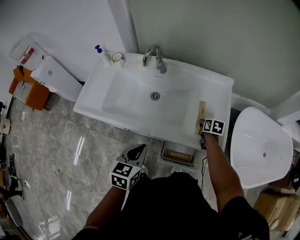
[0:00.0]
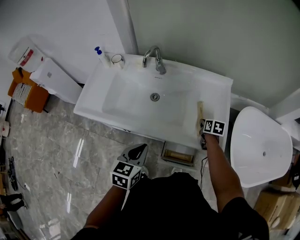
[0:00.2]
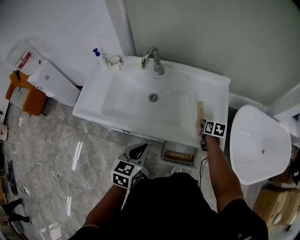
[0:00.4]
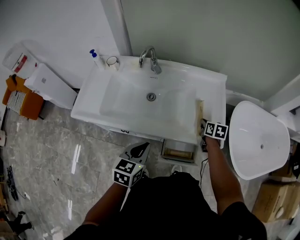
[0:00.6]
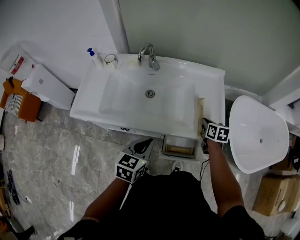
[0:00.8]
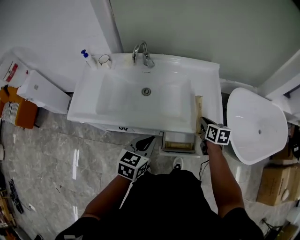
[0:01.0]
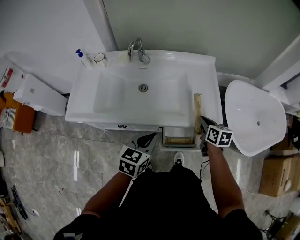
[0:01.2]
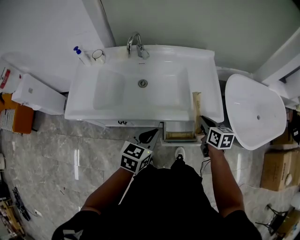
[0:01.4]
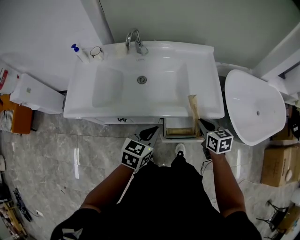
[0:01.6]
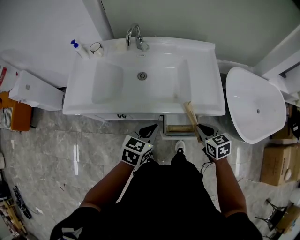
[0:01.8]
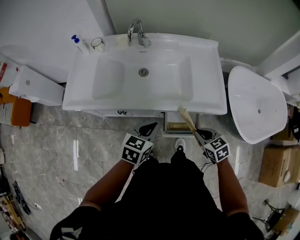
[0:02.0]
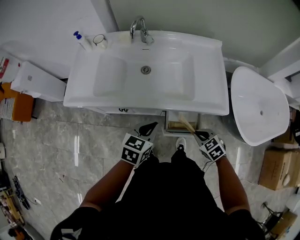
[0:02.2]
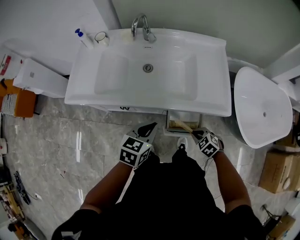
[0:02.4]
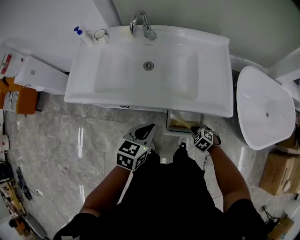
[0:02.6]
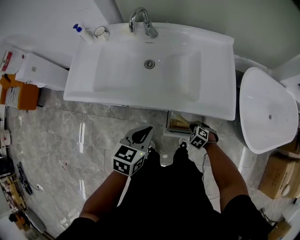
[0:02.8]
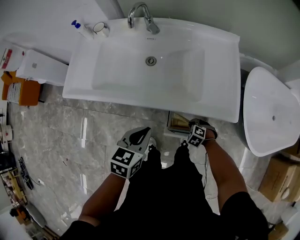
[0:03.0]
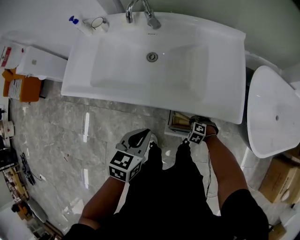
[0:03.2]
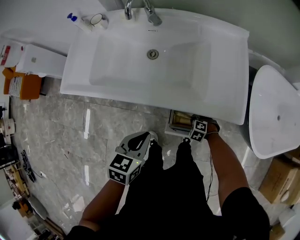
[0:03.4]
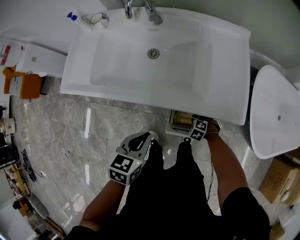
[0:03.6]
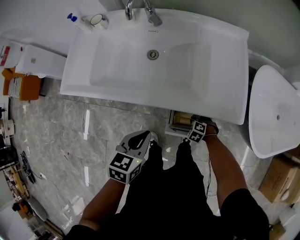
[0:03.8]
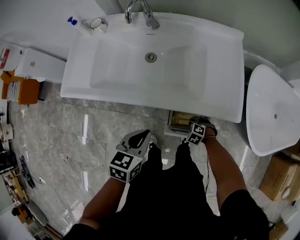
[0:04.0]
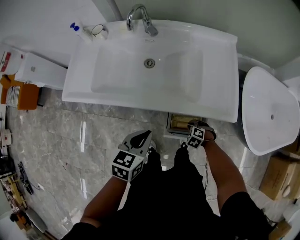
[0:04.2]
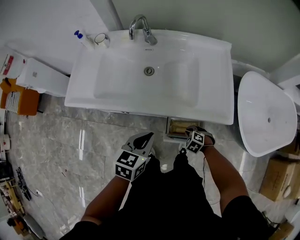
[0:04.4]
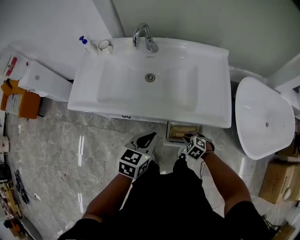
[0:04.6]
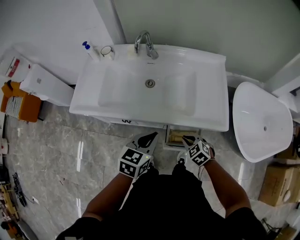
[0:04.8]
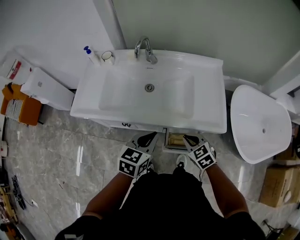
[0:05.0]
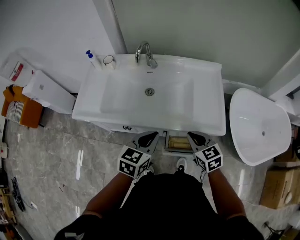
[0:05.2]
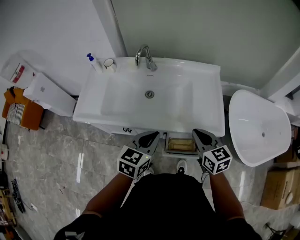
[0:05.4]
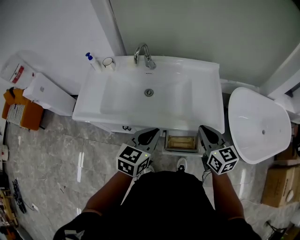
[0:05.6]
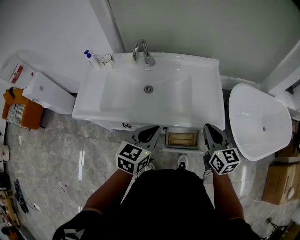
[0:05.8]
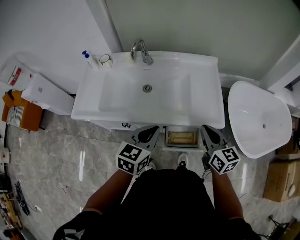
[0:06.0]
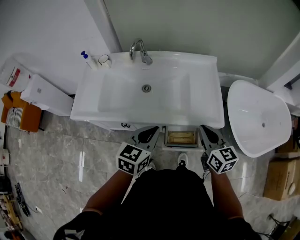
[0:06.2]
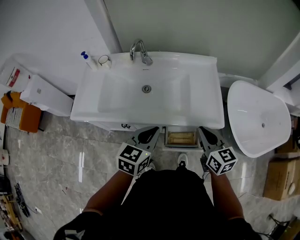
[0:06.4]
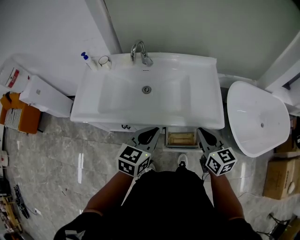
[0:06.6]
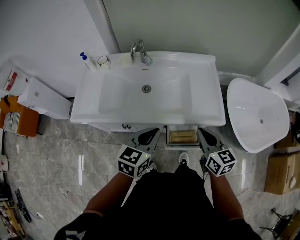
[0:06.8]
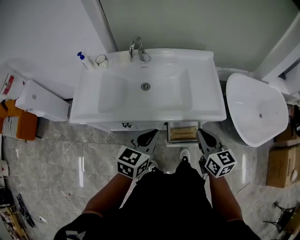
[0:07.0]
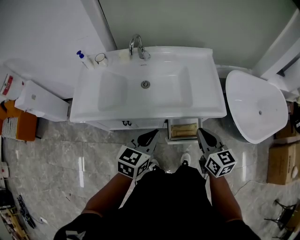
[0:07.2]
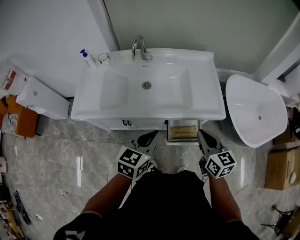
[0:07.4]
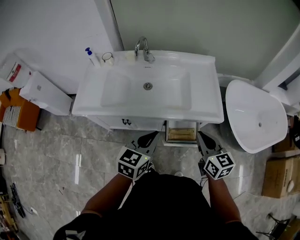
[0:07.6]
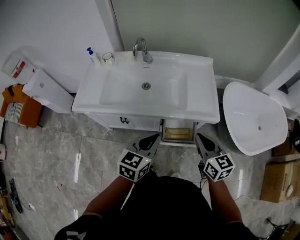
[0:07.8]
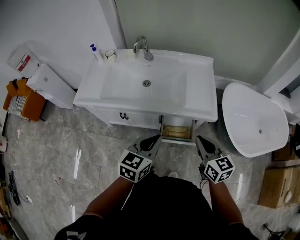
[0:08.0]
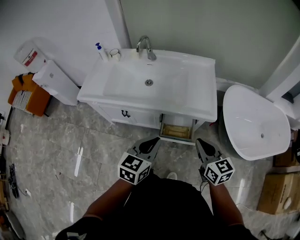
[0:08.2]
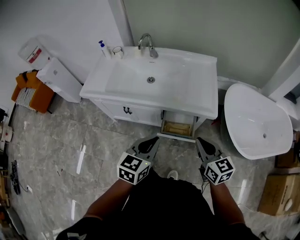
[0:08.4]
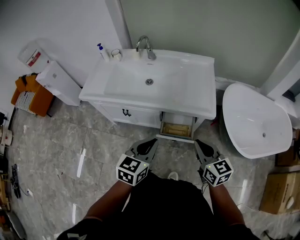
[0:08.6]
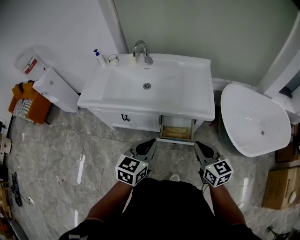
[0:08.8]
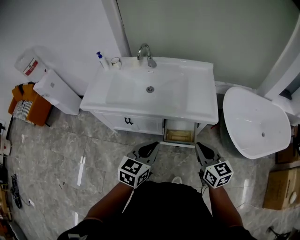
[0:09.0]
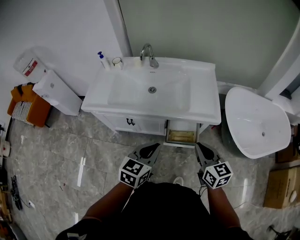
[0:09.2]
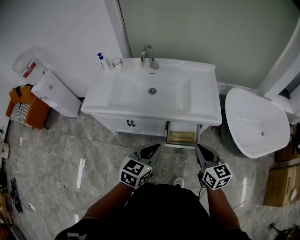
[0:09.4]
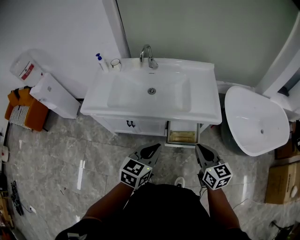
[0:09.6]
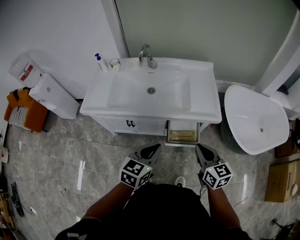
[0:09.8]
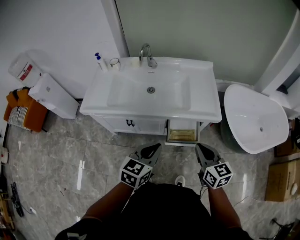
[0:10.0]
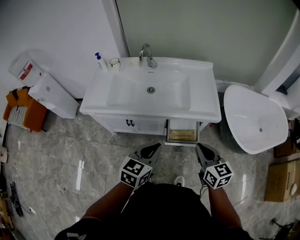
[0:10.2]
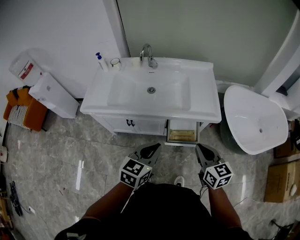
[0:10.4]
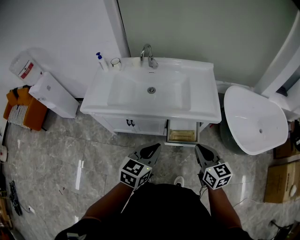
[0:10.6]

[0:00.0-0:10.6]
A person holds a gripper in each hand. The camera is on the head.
0:00.0 to 0:01.6: The right gripper heads backward and upward, covering roughly 25 cm, while the left gripper turns by roughly 20 degrees.
0:01.6 to 0:03.0: The right gripper heads downward, covering some 30 cm, and rotates around the line of its fingers by some 60 degrees, counterclockwise from behind.
0:03.0 to 0:04.6: The right gripper is displaced upward by some 10 cm.
0:04.6 to 0:06.0: The right gripper shifts some 30 cm upward, and angles its fingers upward, by about 50 degrees. Meanwhile the left gripper travels upward by approximately 10 cm.
0:06.0 to 0:07.6: Both grippers travel together backward, approximately 5 cm.
0:07.6 to 0:09.0: The right gripper heads backward, covering about 10 cm; the left gripper shifts about 10 cm backward and to the right.
0:09.0 to 0:10.6: There are only small adjustments of the grippers.

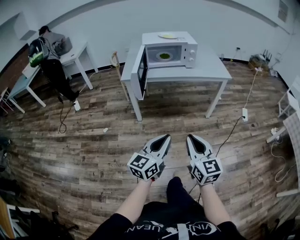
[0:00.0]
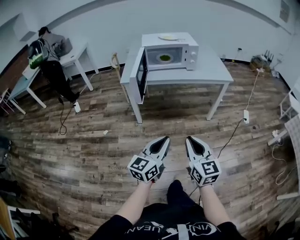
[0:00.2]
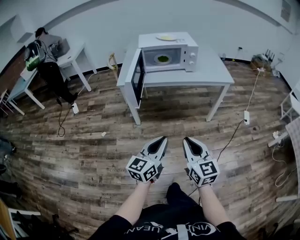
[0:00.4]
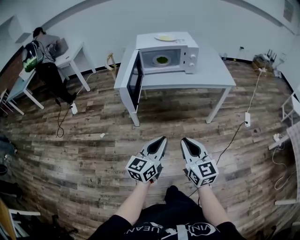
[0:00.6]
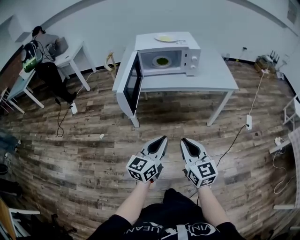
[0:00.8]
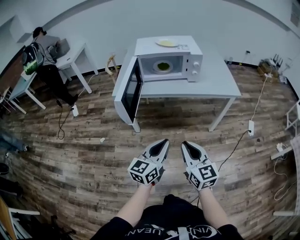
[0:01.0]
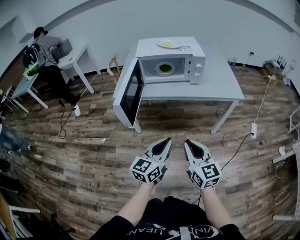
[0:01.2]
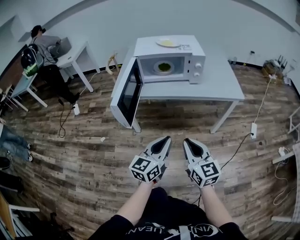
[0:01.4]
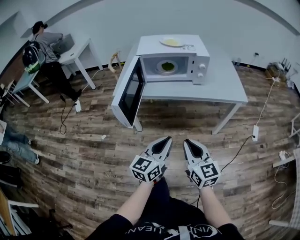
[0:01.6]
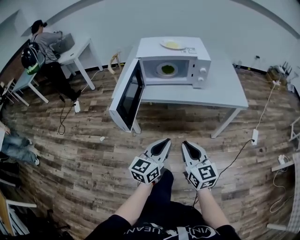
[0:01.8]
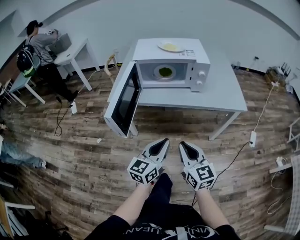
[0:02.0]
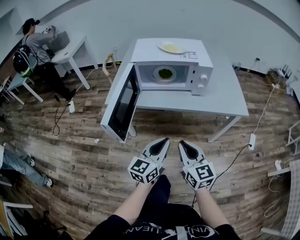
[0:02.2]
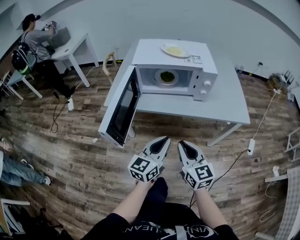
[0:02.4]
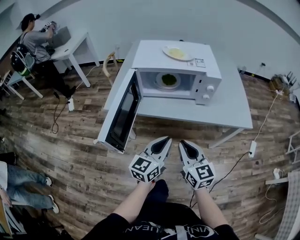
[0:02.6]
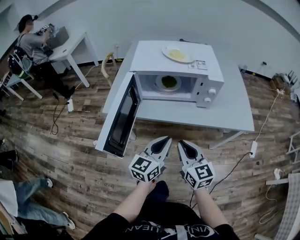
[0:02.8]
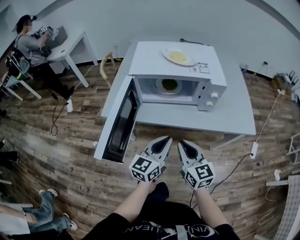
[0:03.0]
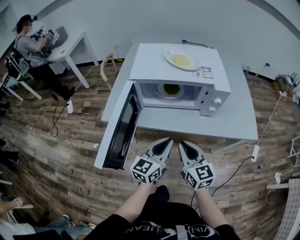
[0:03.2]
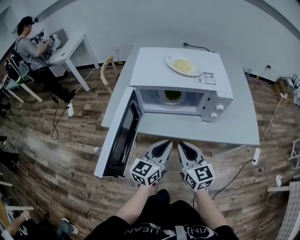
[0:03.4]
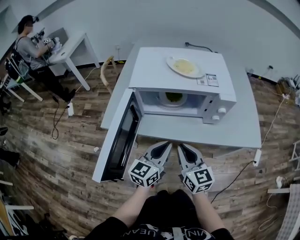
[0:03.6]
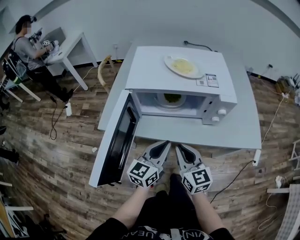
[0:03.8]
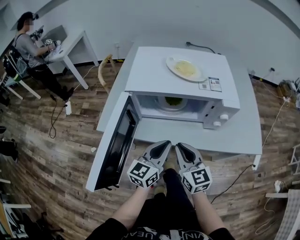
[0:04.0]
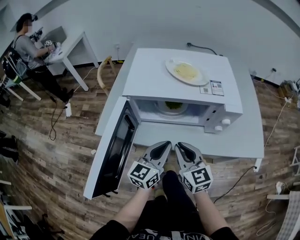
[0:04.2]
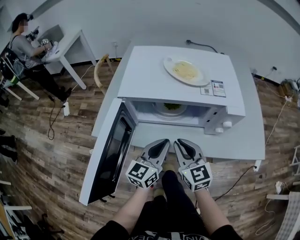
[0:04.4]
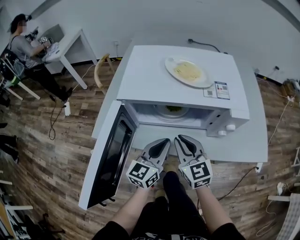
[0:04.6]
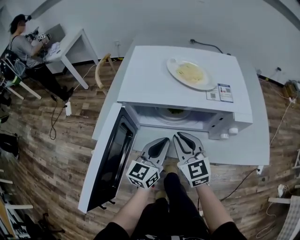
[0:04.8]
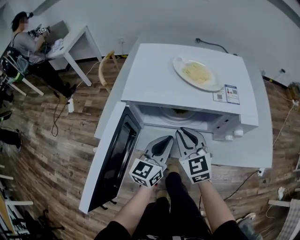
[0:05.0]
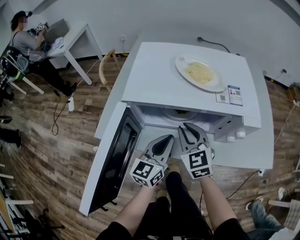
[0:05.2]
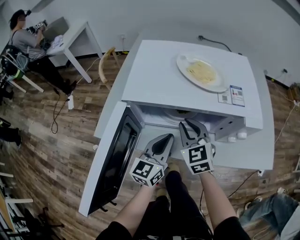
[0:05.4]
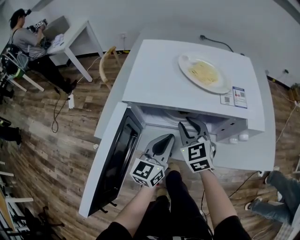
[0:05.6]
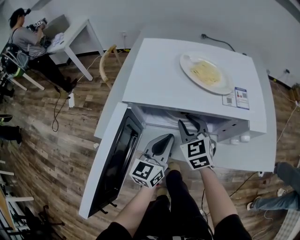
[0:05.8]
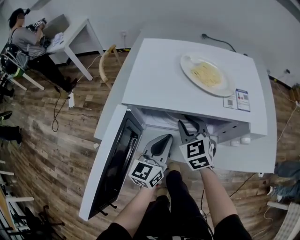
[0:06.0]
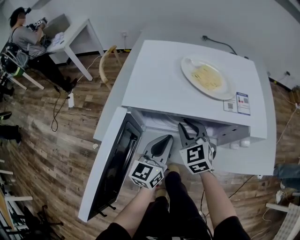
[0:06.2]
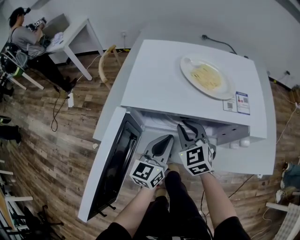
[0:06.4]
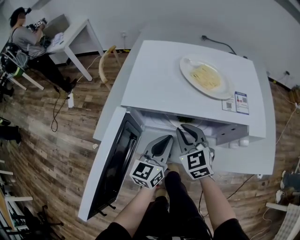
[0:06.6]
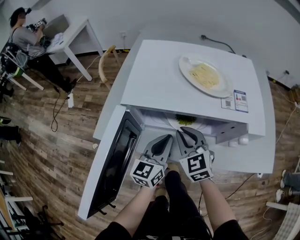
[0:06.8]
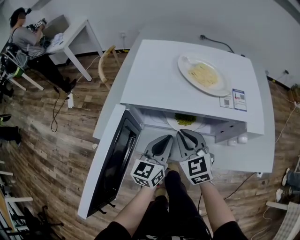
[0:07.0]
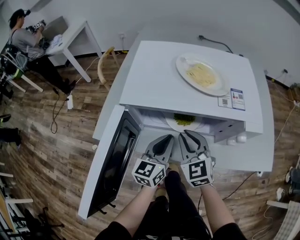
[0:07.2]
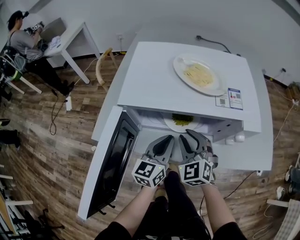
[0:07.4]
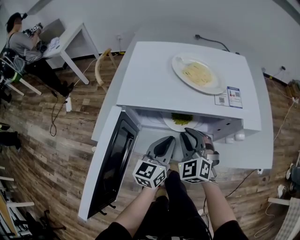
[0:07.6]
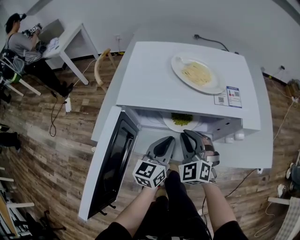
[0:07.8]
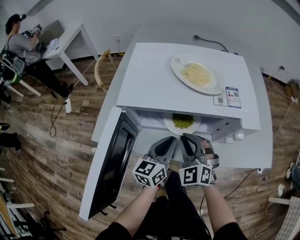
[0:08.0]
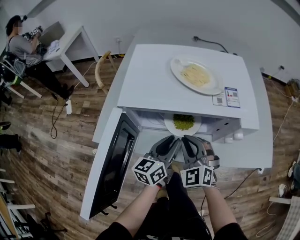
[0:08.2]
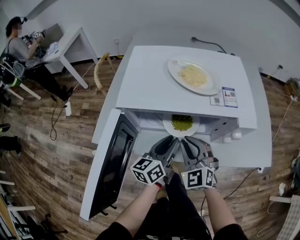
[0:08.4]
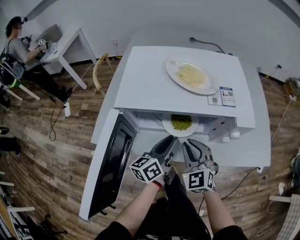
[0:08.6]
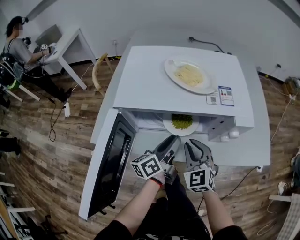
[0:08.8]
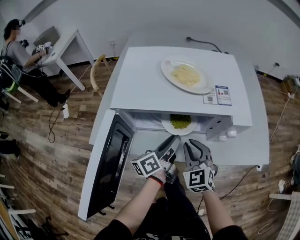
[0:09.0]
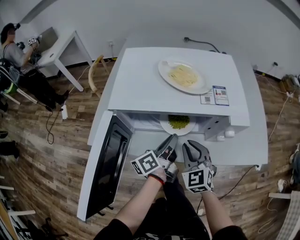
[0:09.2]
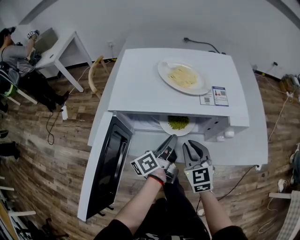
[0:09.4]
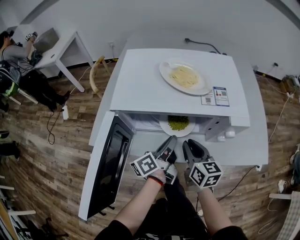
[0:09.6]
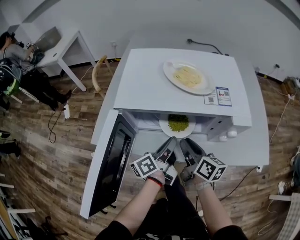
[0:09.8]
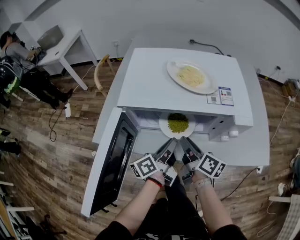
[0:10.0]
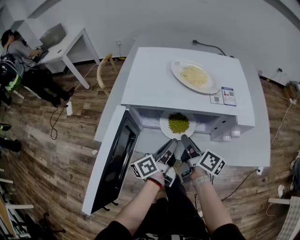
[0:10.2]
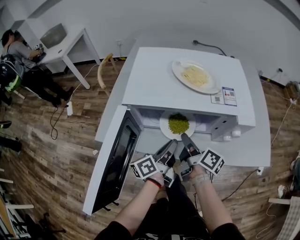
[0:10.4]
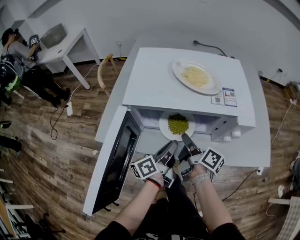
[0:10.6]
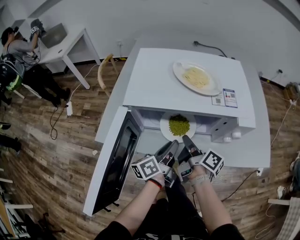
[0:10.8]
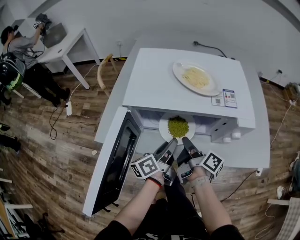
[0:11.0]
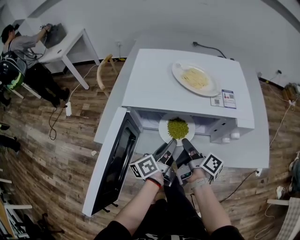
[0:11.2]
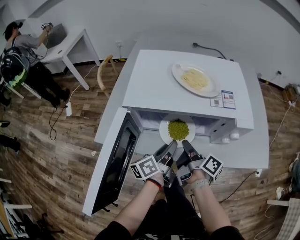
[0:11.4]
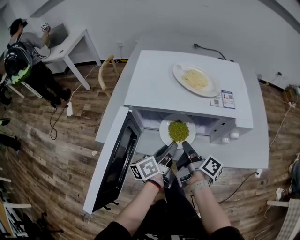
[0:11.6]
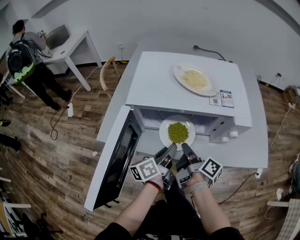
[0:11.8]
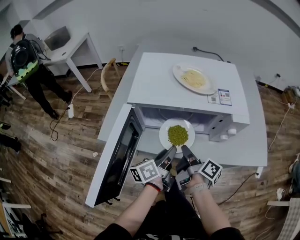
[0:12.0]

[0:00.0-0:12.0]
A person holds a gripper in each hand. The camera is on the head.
0:00.0 to 0:01.6: Both grippers move forward, about 25 cm.
0:01.6 to 0:03.0: The two grippers go some 20 cm forward.
0:03.0 to 0:04.4: Both grippers move forward, some 15 cm.
0:04.4 to 0:06.0: The left gripper moves forward, approximately 5 cm, while the right gripper goes some 15 cm forward, and swivels about 20 degrees.
0:06.0 to 0:07.6: The right gripper heads backward, covering roughly 5 cm, and turns by some 20 degrees.
0:07.6 to 0:09.0: The left gripper twists roughly 40 degrees counterclockwise, seen from behind, and opens, while the right gripper ends up roughly 5 cm from where it was.
0:09.0 to 0:10.4: The right gripper twists approximately 90 degrees clockwise, seen from behind; the left gripper closes its fingers.
0:10.4 to 0:12.0: The right gripper moves backward, about 5 cm.

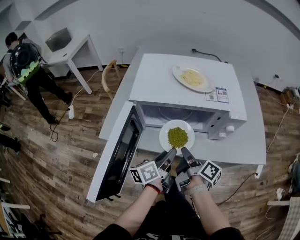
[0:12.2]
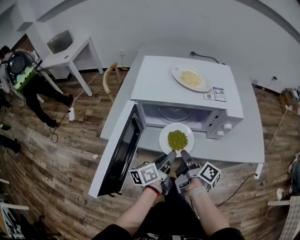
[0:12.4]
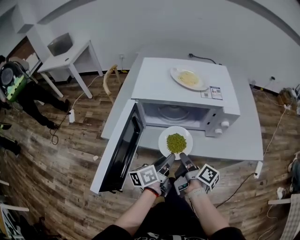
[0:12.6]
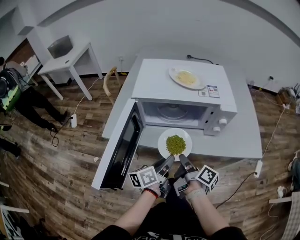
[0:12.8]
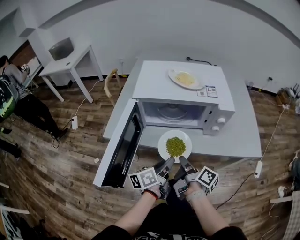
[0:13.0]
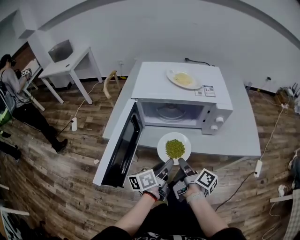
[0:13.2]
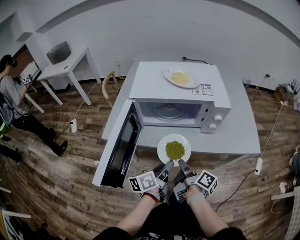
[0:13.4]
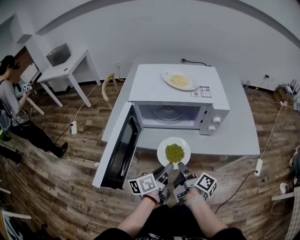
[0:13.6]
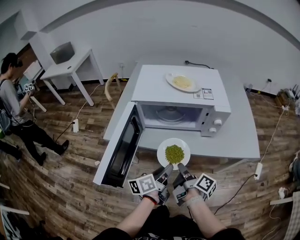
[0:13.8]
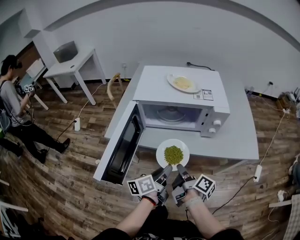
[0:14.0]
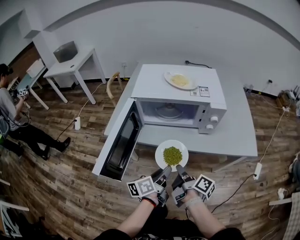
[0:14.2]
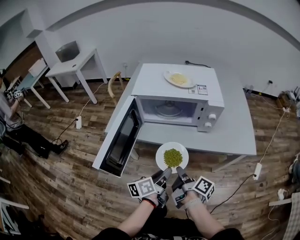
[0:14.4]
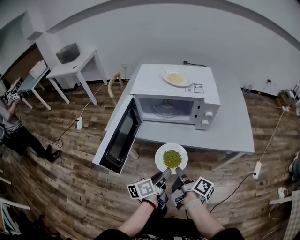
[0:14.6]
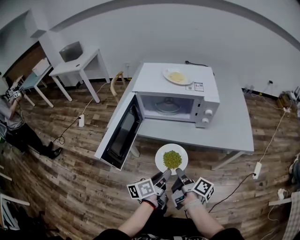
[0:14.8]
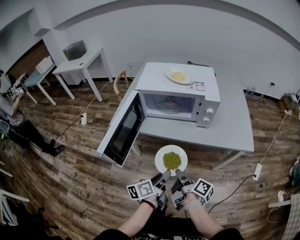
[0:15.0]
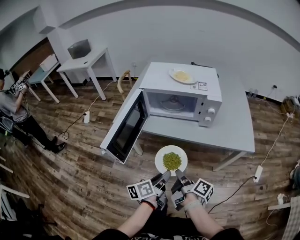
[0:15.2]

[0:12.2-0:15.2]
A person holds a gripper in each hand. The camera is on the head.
0:12.2 to 0:13.8: Both grippers move backward, approximately 10 cm.
0:13.8 to 0:15.2: The grippers both shift backward by about 15 cm.
